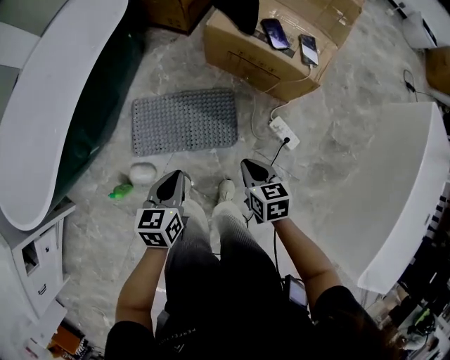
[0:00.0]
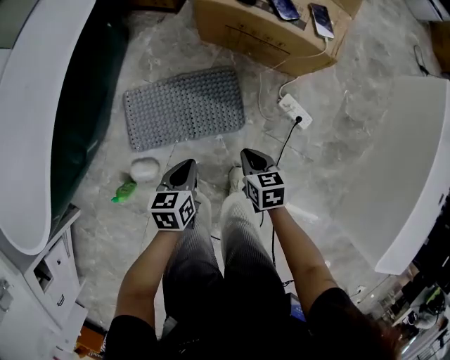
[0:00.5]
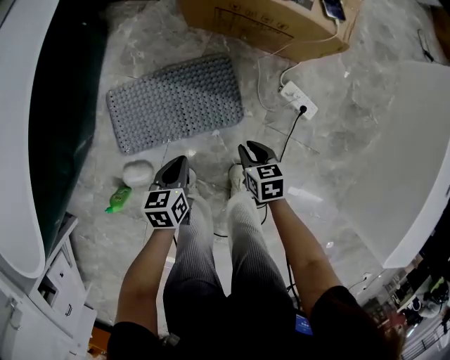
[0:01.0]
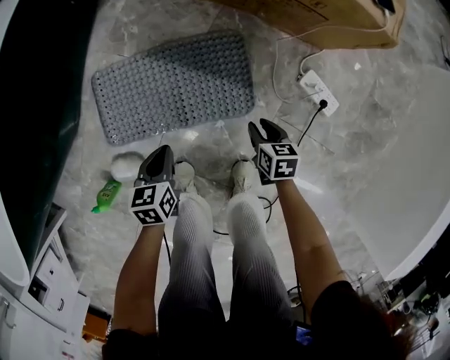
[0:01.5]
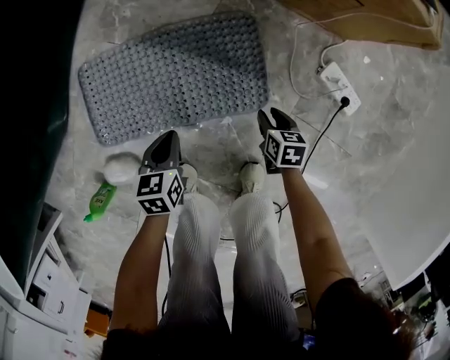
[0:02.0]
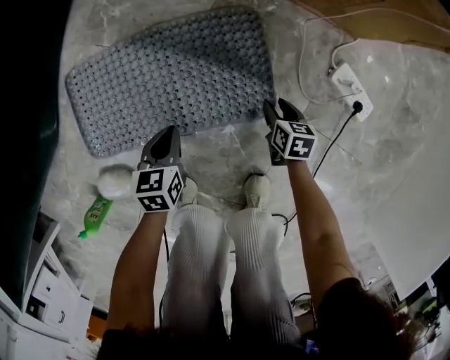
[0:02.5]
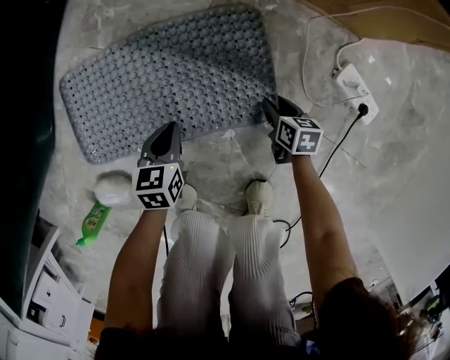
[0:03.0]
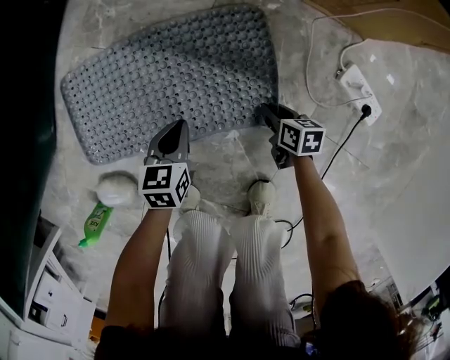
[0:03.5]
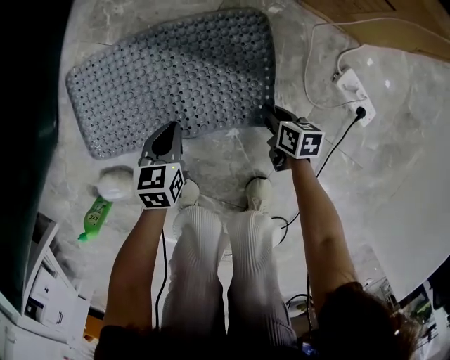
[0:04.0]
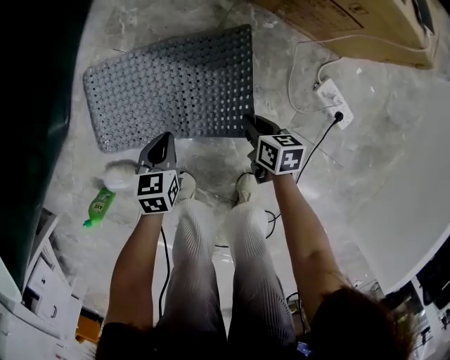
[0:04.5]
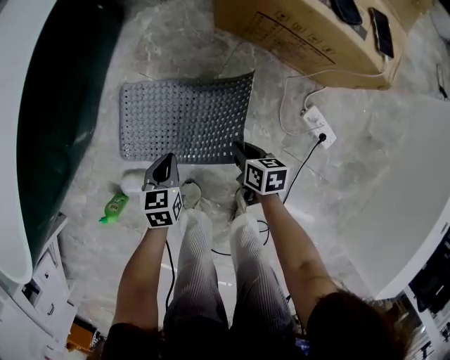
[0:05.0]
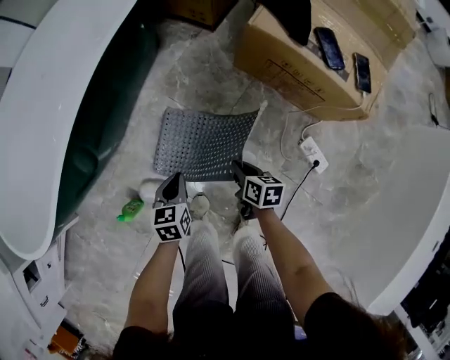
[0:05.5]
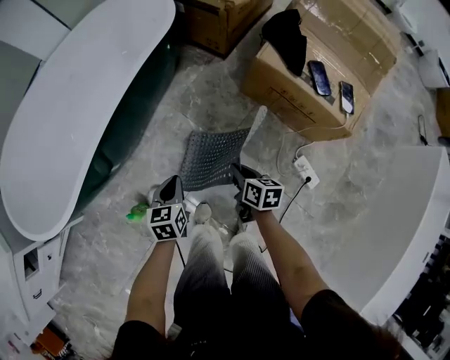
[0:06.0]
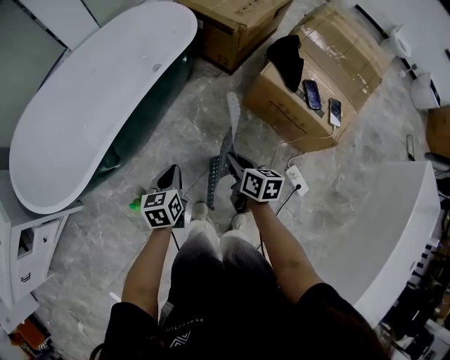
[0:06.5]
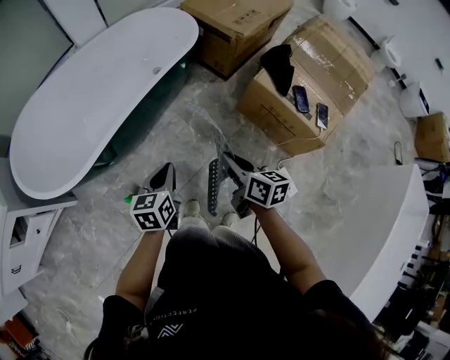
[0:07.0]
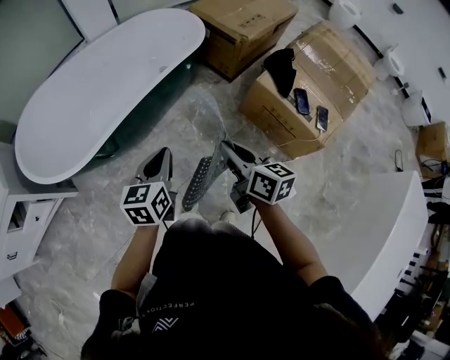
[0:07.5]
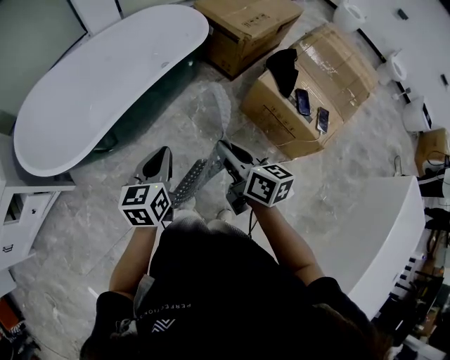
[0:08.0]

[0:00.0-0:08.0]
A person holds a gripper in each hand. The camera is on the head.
0:00.0 to 0:02.0: The two grippers go approximately 50 cm downward. The right gripper turns by some 20 degrees, and opens its fingers.
0:02.0 to 0:04.0: Both grippers move downward, about 10 cm. The right gripper closes its fingers.
0:04.0 to 0:06.0: Both grippers move upward, roughly 50 cm. The left gripper swivels some 20 degrees.
0:06.0 to 0:08.0: Both grippers move upward, about 30 cm. The left gripper changes its angle by some 20 degrees, while the right gripper turns by about 30 degrees.

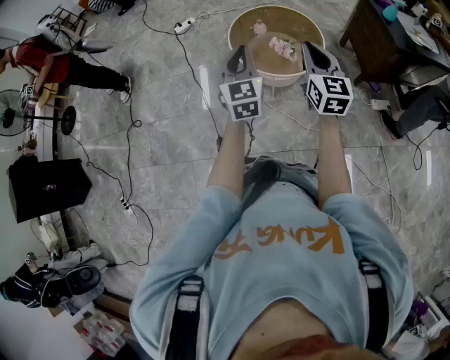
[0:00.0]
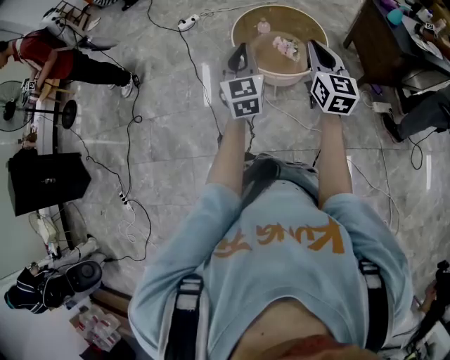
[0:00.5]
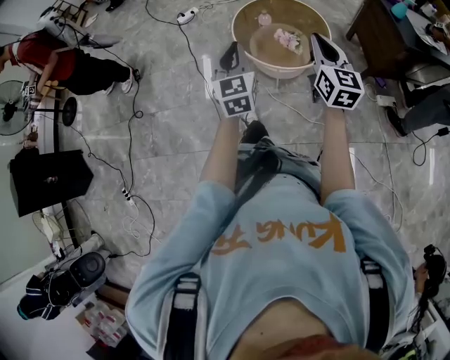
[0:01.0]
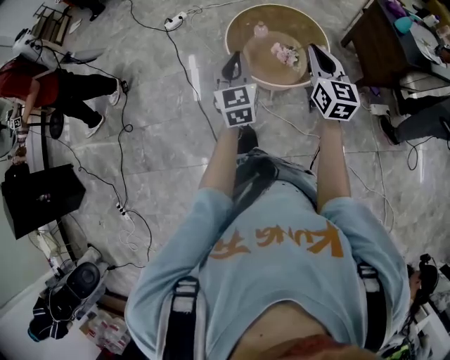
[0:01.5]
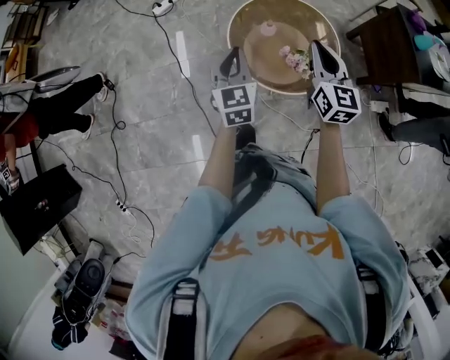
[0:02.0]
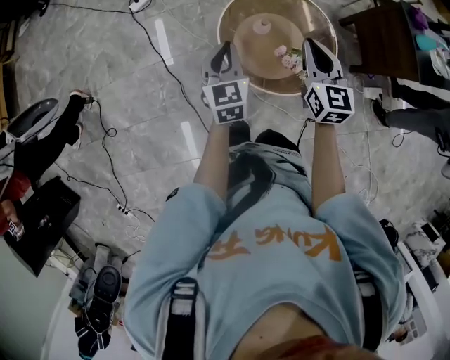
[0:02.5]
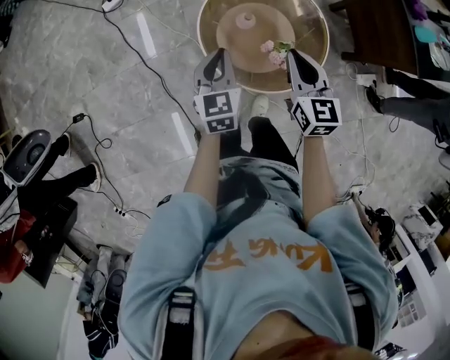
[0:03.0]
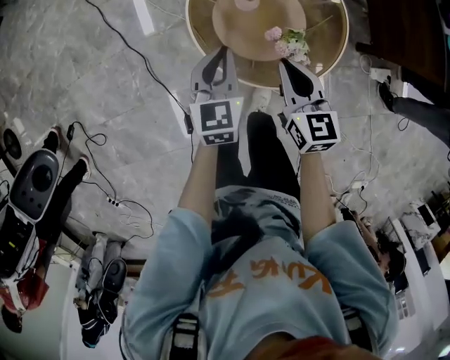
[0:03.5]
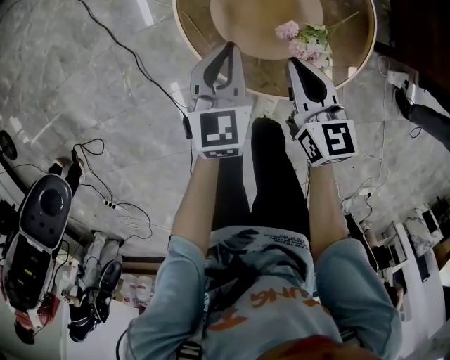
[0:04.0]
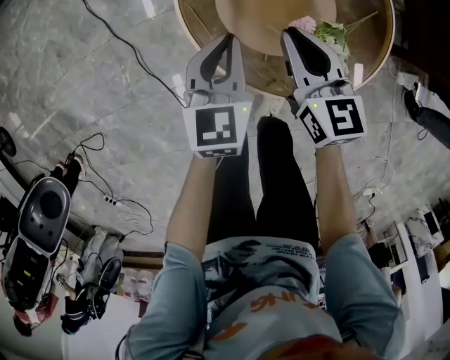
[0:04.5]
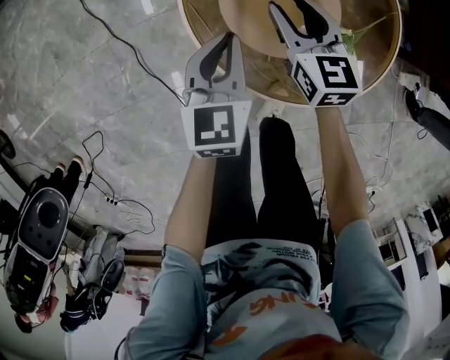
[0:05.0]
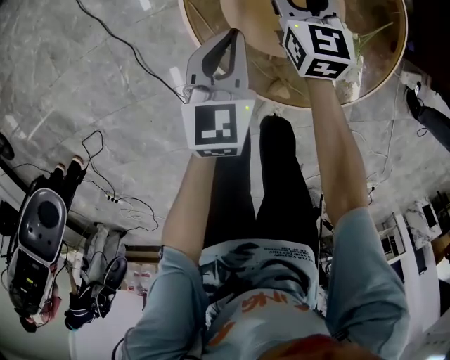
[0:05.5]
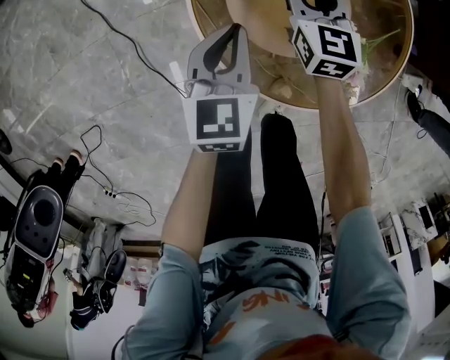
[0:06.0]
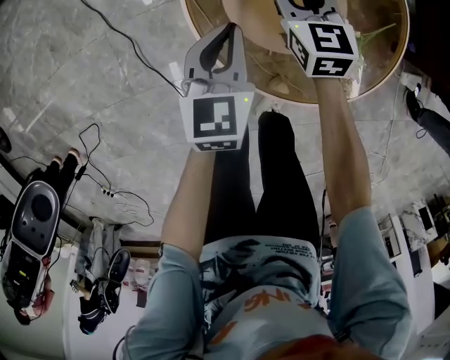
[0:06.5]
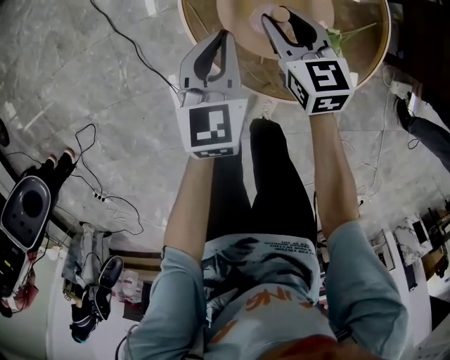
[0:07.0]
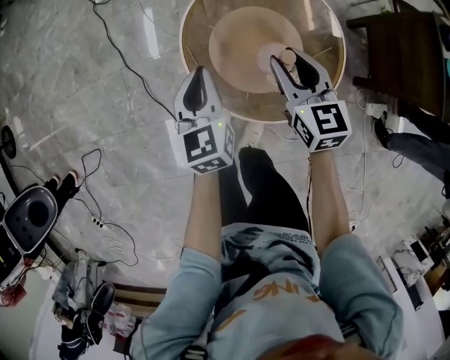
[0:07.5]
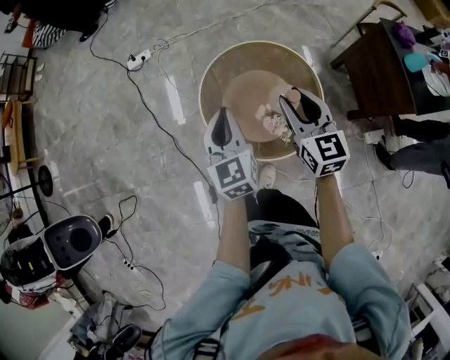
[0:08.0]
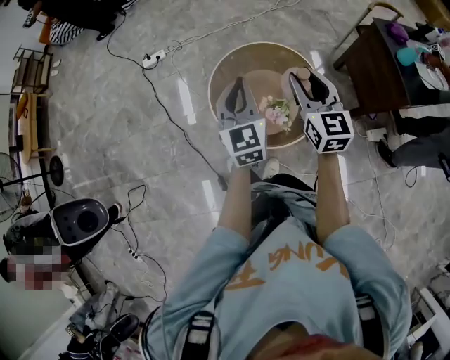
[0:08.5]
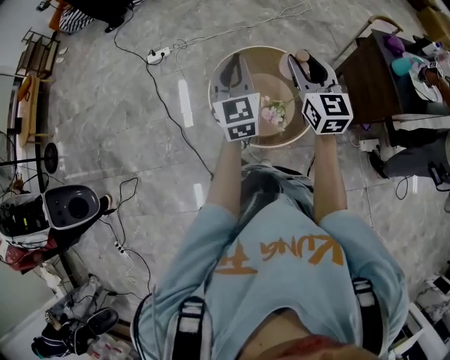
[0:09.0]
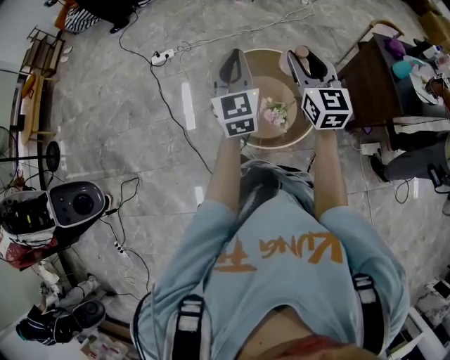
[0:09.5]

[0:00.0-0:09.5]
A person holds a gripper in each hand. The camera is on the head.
0:00.0 to 0:02.0: The grippers both shift forward by about 30 cm.
0:02.0 to 0:04.0: Both grippers move downward, approximately 30 cm. The right gripper turns by some 20 degrees.
0:04.0 to 0:05.5: The left gripper goes approximately 5 cm downward; the right gripper heads forward and downward, covering some 20 cm, and opens.
0:05.5 to 0:07.5: The left gripper shifts some 15 cm upward, and rotates some 20 degrees, while the right gripper is displaced upward and backward by some 25 cm.
0:07.5 to 0:09.5: The two grippers go roughly 35 cm upward. The left gripper swivels roughly 30 degrees. Meanwhile the right gripper changes its angle by roughly 20 degrees.

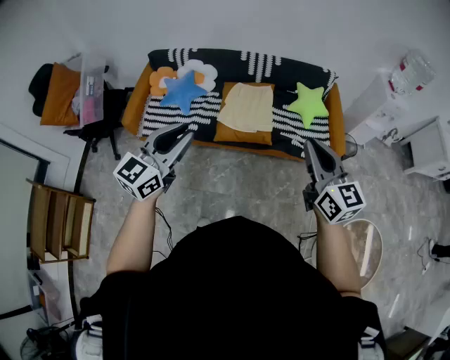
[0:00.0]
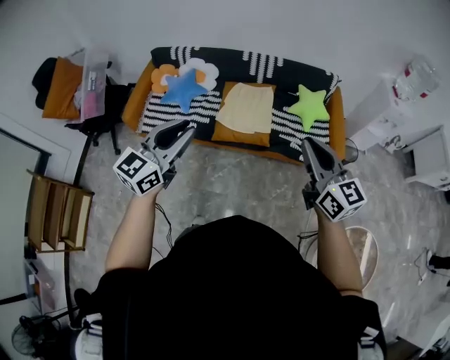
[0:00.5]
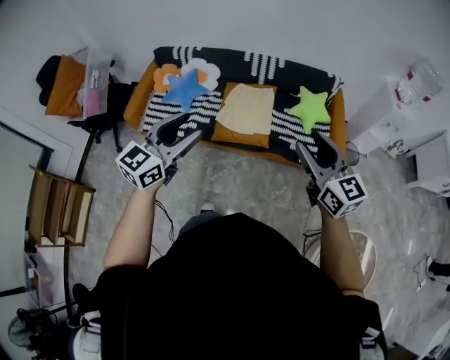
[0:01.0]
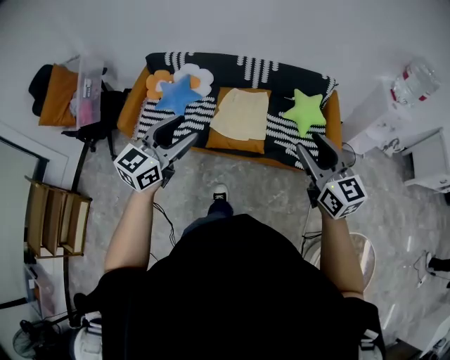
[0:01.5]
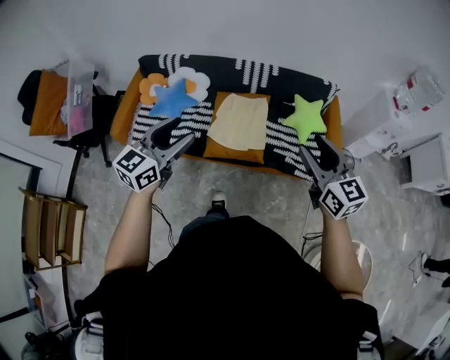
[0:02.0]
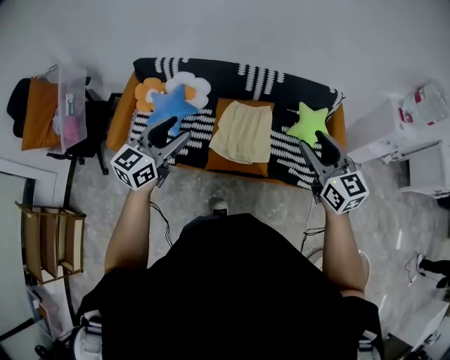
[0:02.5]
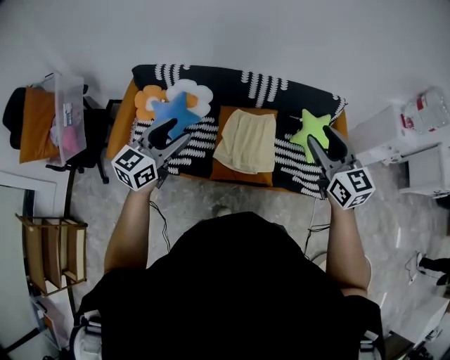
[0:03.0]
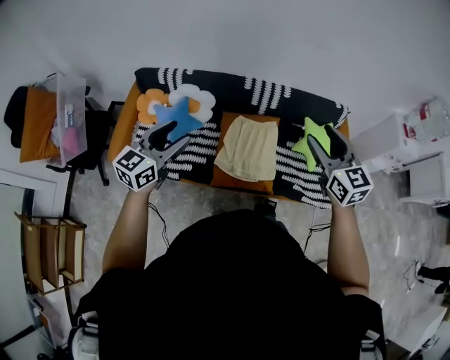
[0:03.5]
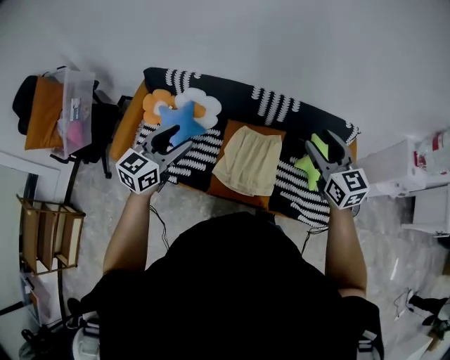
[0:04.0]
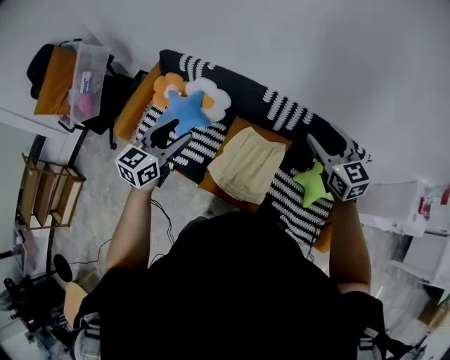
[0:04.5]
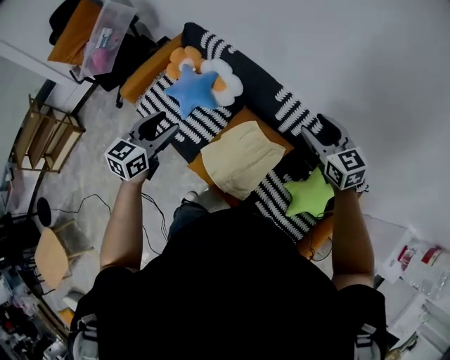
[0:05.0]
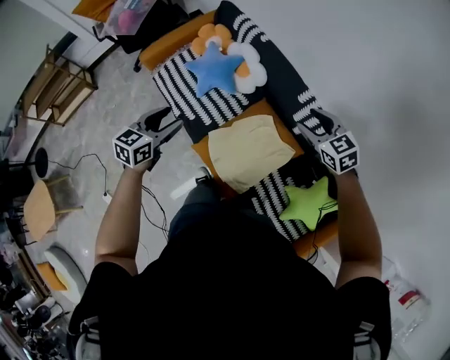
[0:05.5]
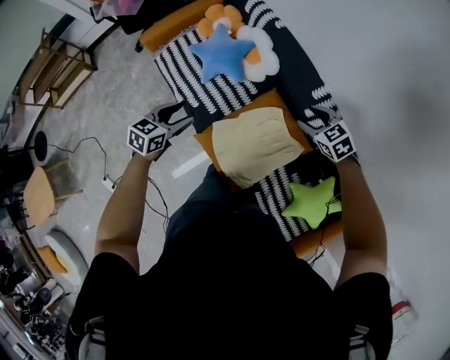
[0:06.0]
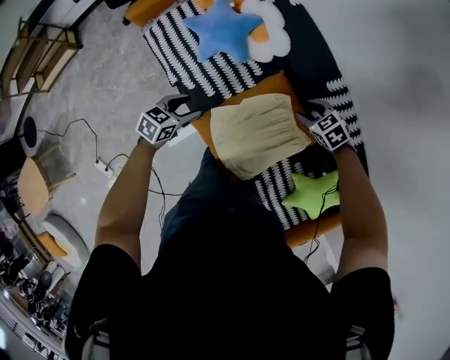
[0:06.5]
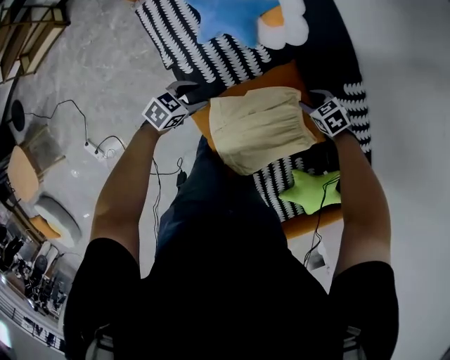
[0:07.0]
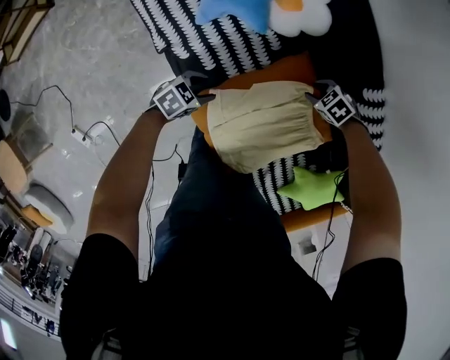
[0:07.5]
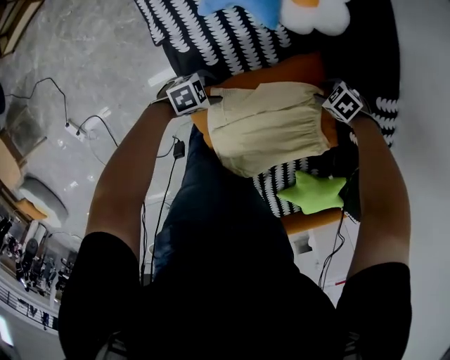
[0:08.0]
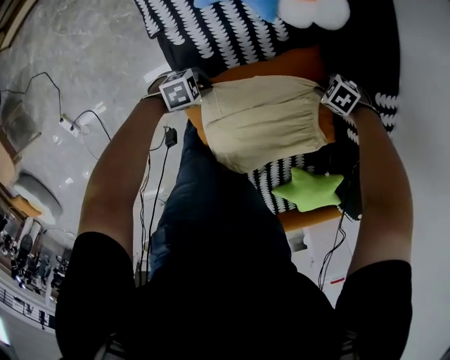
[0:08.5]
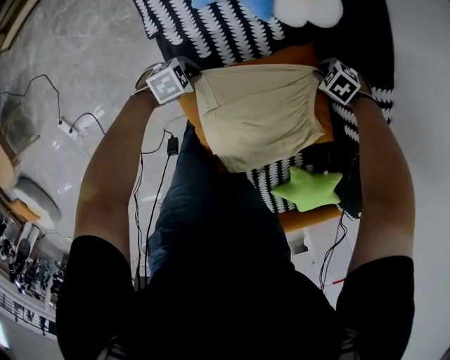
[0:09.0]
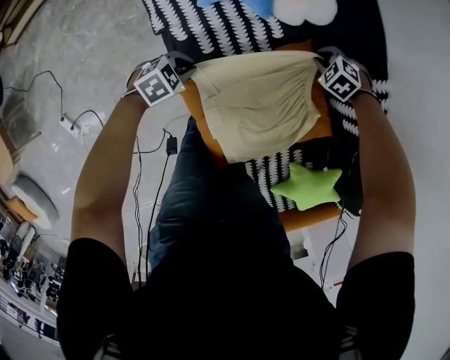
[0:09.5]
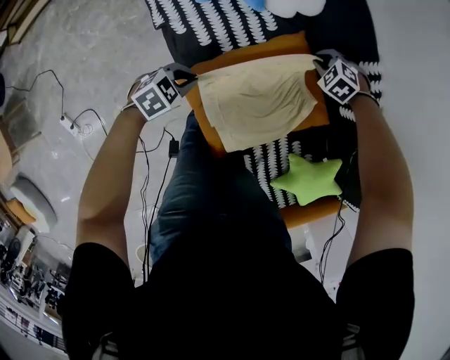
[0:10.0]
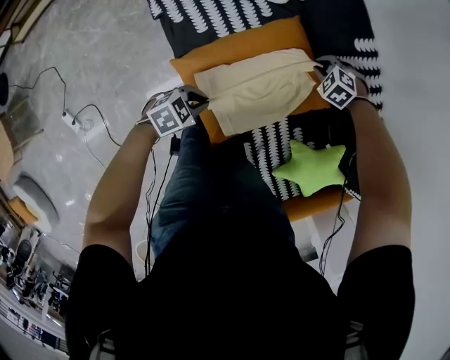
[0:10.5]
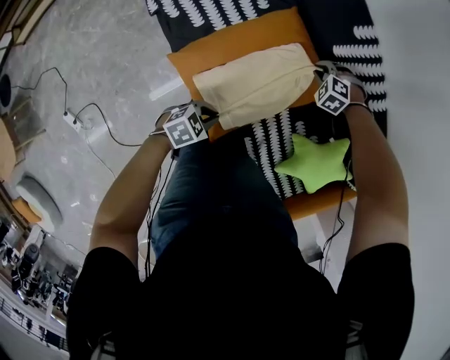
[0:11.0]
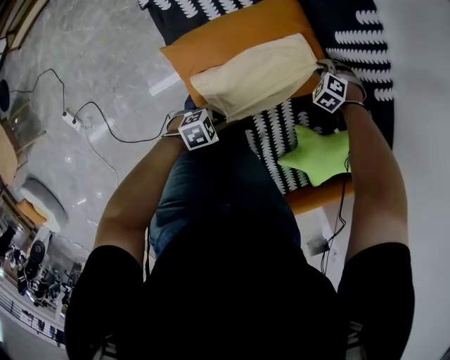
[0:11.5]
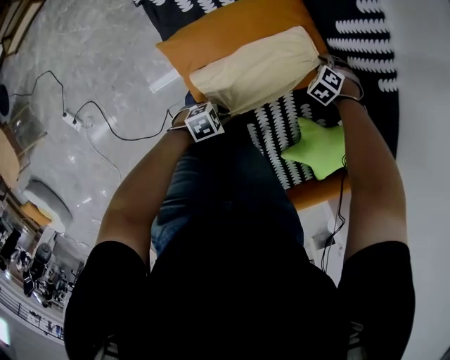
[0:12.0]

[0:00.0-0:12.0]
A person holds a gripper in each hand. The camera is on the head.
0:00.0 to 0:02.0: Both grippers travel together forward, about 20 cm. The left gripper opens up. The right gripper opens up.
0:02.0 to 0:04.0: The grippers both shift forward by some 30 cm.
0:04.0 to 0:06.0: Both grippers travel together downward, about 30 cm. The left gripper turns by some 50 degrees. Meanwhile the right gripper tilts its fingers roughly 40 degrees downward.
0:06.0 to 0:08.0: The grippers both shift downward by roughly 40 cm. The left gripper changes its angle by some 40 degrees. Meanwhile the right gripper swivels roughly 50 degrees.
0:08.0 to 0:10.0: The two grippers go about 10 cm upward. The left gripper closes. The right gripper swivels roughly 30 degrees, and closes up.
0:10.0 to 0:12.0: The left gripper shifts by roughly 35 cm. The right gripper ends up approximately 25 cm from where it was.
